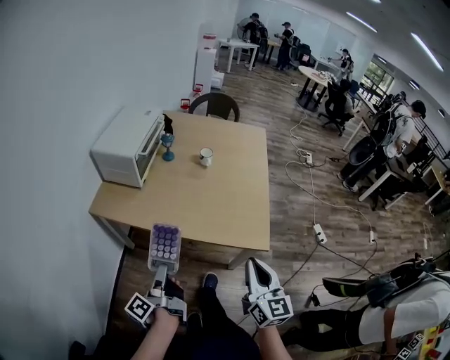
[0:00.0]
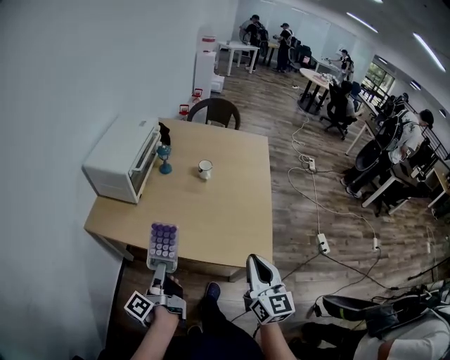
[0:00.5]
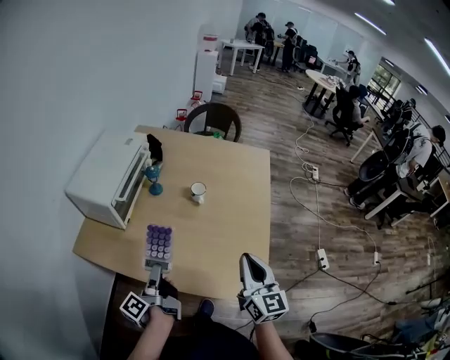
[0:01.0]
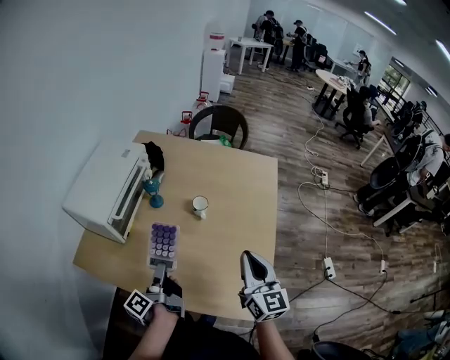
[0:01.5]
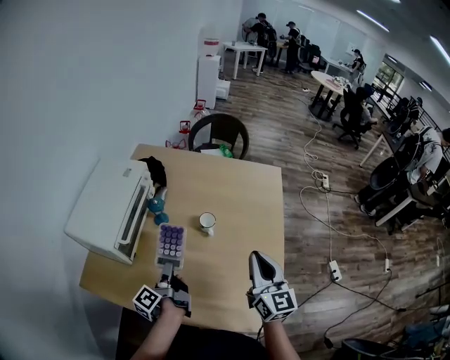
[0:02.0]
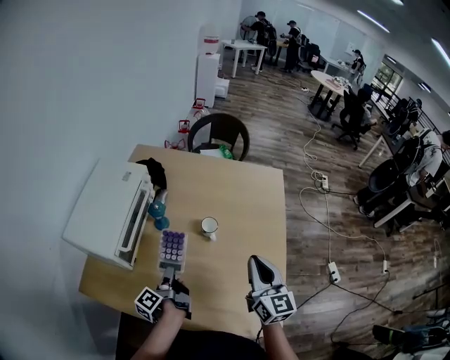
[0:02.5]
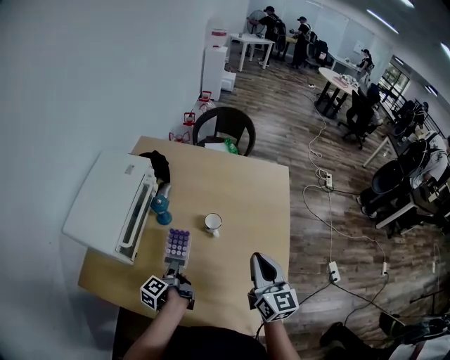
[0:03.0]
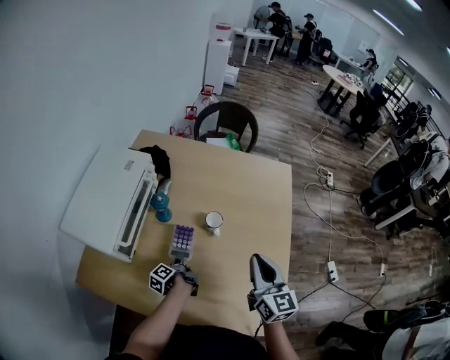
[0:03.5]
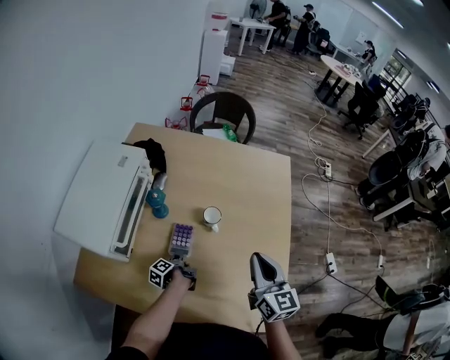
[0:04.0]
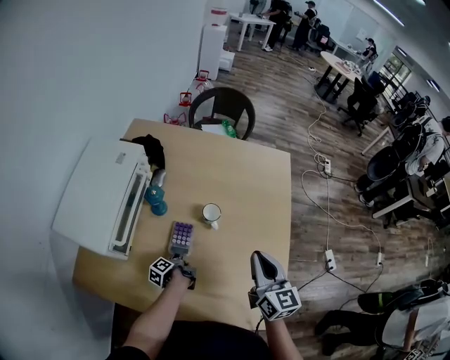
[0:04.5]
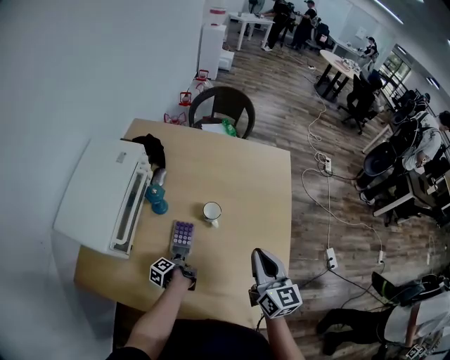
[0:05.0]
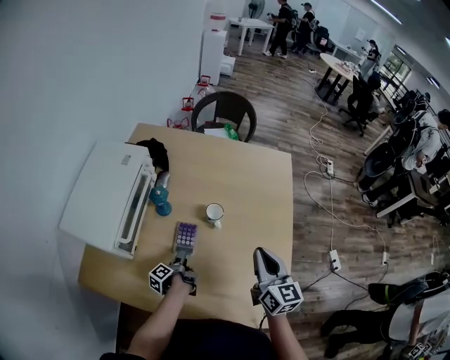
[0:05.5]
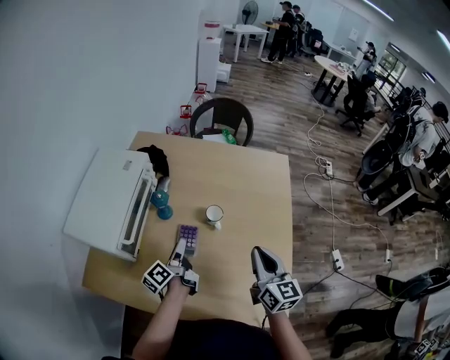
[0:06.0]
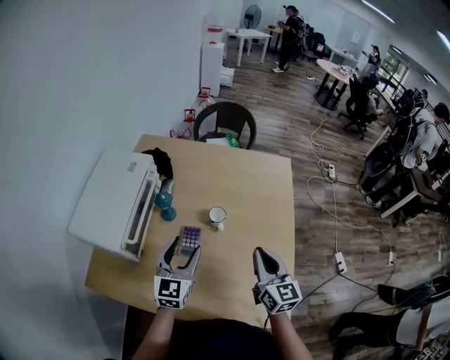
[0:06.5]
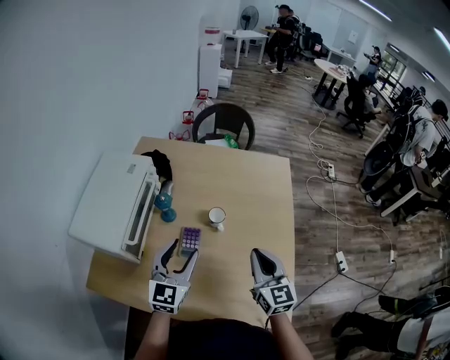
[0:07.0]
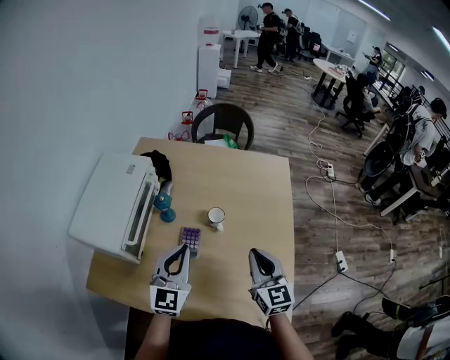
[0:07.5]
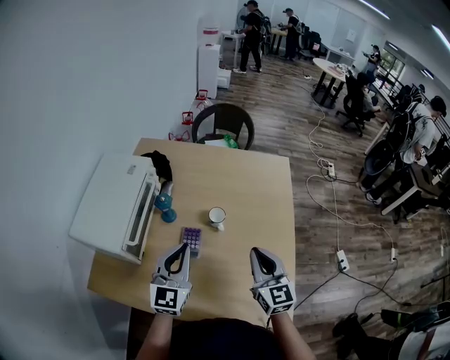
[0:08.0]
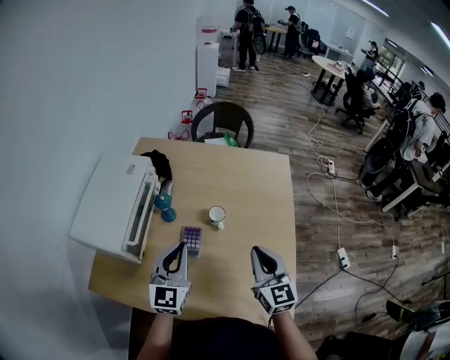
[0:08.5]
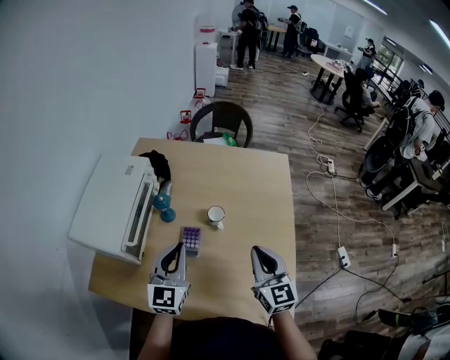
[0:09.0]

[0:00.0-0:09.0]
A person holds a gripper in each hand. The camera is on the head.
0:00.0 to 0:02.0: The right gripper changes place by some 50 cm.
0:02.0 to 0:04.5: The right gripper moves downward, approximately 5 cm.

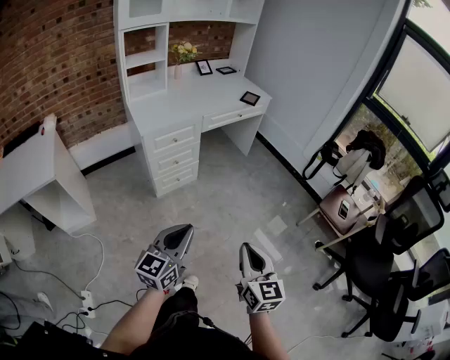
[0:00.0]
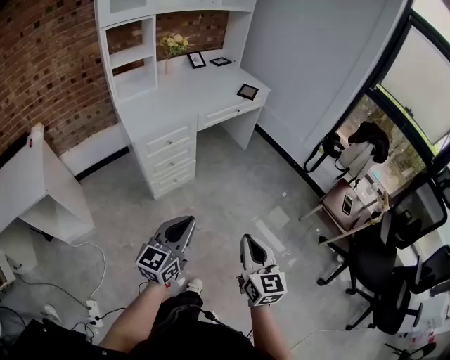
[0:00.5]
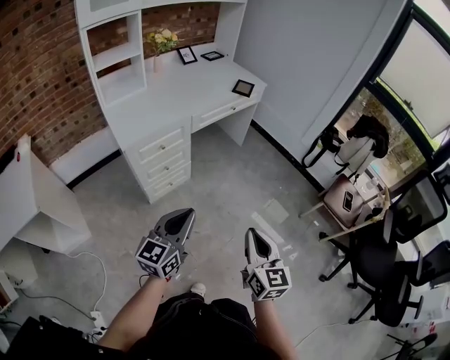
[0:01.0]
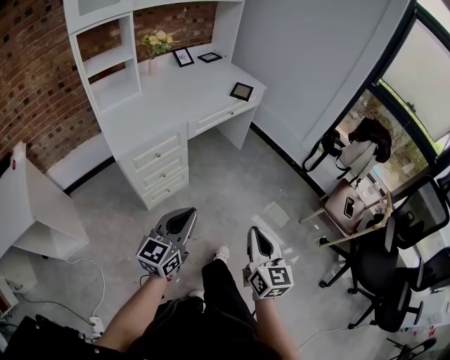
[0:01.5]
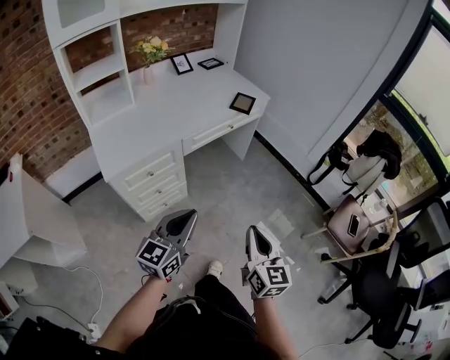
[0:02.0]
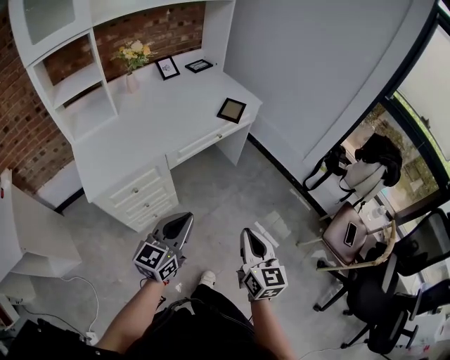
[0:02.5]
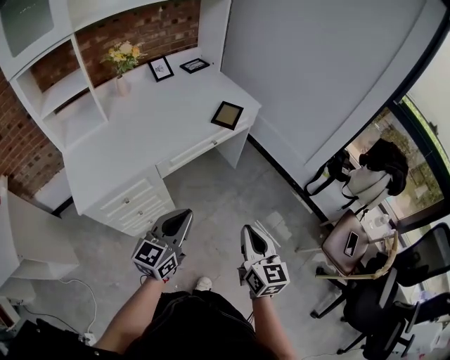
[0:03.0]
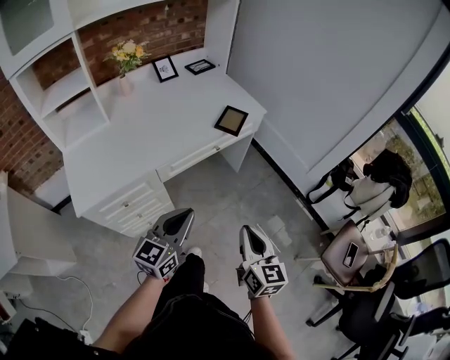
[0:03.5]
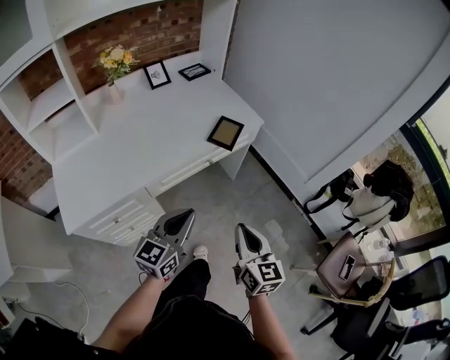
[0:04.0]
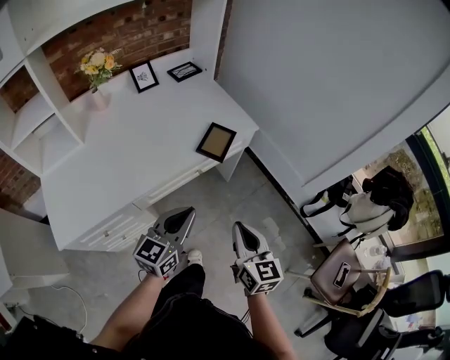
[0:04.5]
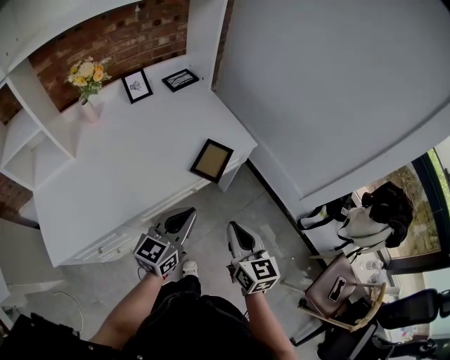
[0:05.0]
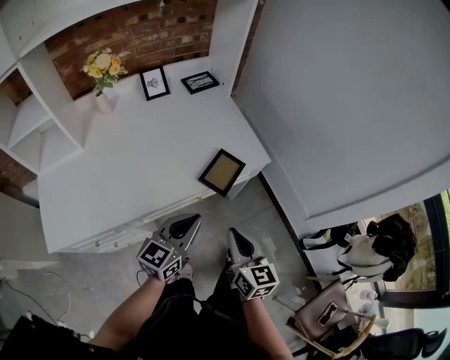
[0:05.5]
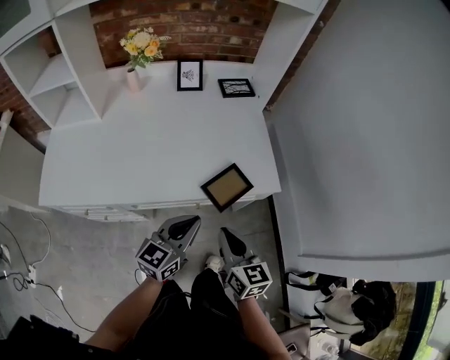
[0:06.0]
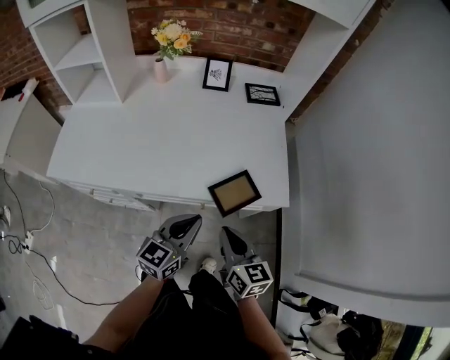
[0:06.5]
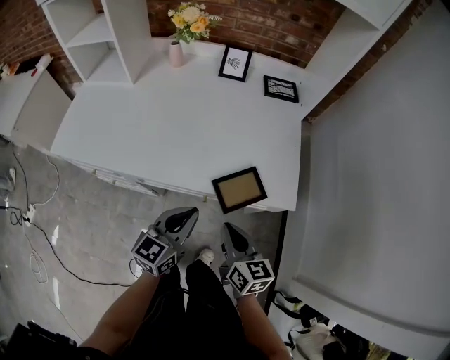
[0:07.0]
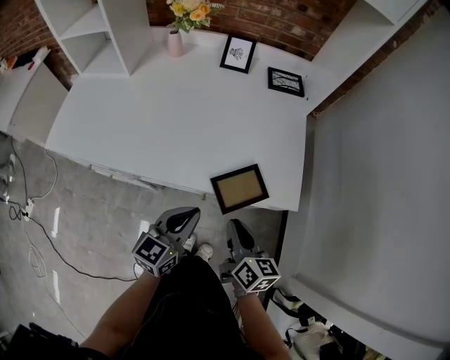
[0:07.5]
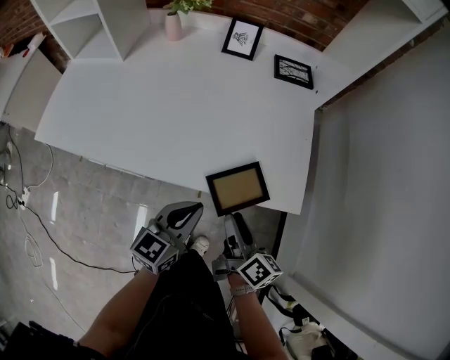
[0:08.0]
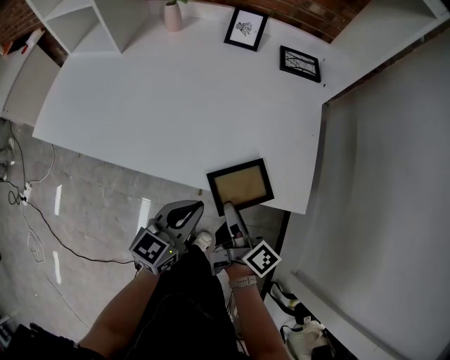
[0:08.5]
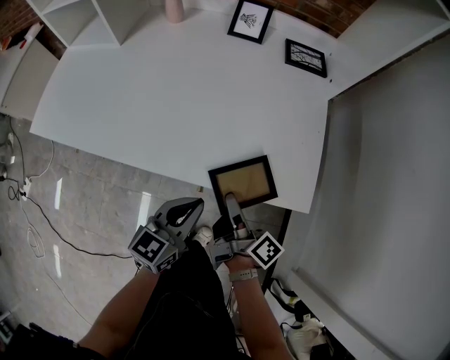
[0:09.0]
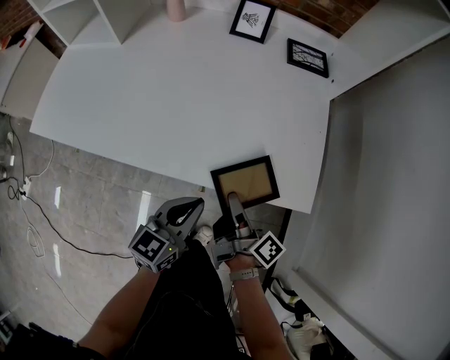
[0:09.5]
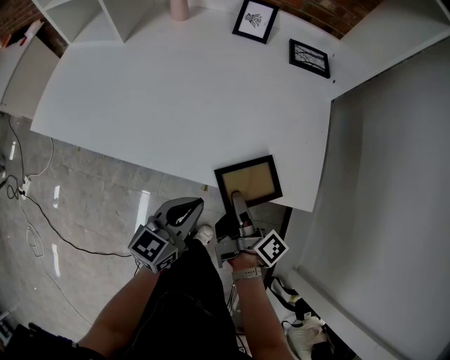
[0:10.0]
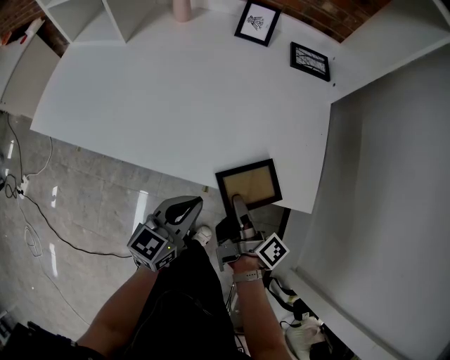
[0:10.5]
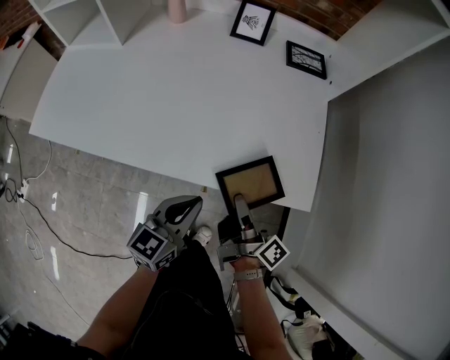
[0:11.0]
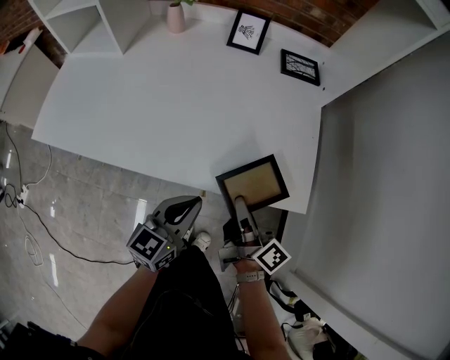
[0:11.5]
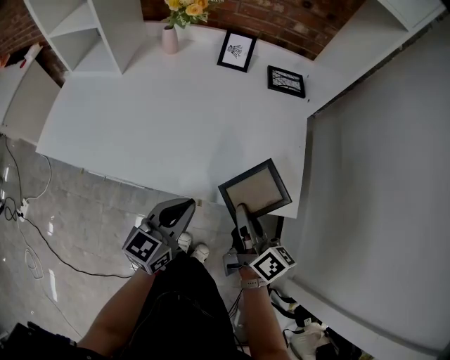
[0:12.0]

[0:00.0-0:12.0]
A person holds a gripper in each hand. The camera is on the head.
0:00.0 to 0:02.0: Both grippers travel together forward, some 35 cm.
0:02.0 to 0:04.0: The grippers both shift forward by roughly 30 cm.
0:04.0 to 0:06.0: The left gripper ends up approximately 25 cm from where it was, and swivels about 20 degrees. Meanwhile the right gripper changes place by about 25 cm, and rotates roughly 30 degrees.
0:06.0 to 0:08.0: The right gripper shifts approximately 10 cm downward and forward, rotates about 40 degrees, and opens; the left gripper heads downward, covering some 5 cm.
0:08.0 to 0:10.0: The right gripper changes place by about 5 cm, and swivels approximately 30 degrees.
0:10.0 to 0:12.0: The left gripper travels upward by roughly 5 cm. The right gripper shifts roughly 10 cm upward, and rotates some 40 degrees.

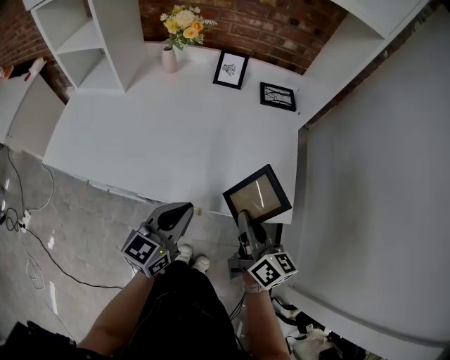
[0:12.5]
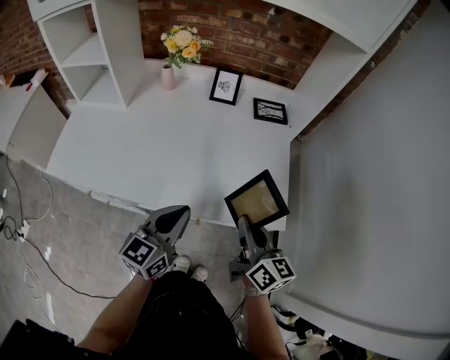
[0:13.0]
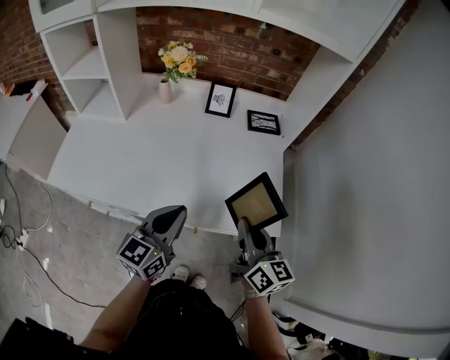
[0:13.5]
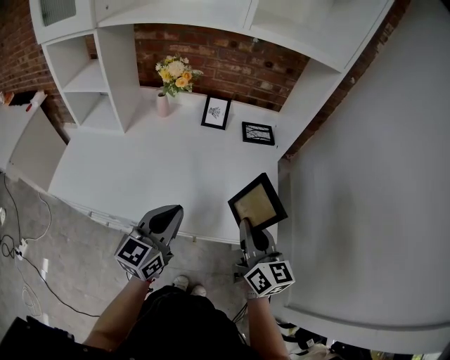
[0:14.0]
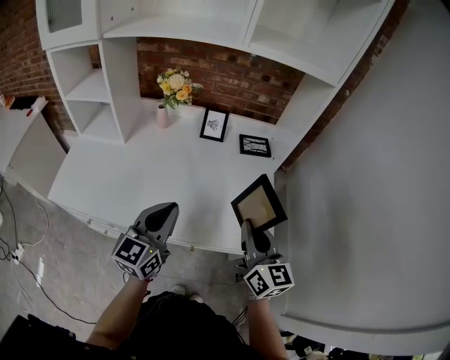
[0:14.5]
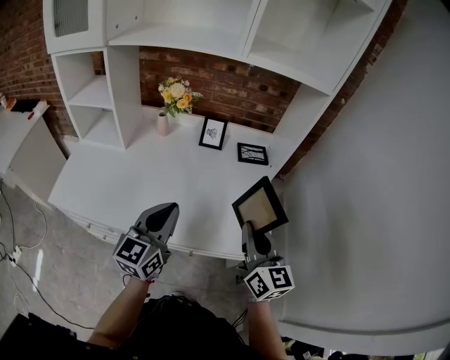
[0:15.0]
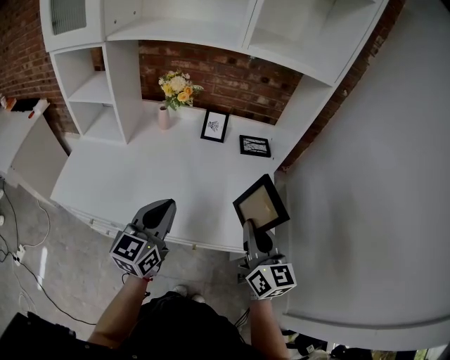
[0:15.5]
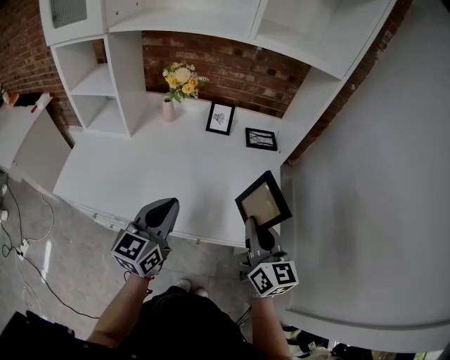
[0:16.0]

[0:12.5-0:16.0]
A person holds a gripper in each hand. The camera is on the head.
0:12.5 to 0:14.5: The right gripper shifts about 10 cm upward, and turns by about 30 degrees. The left gripper goes some 10 cm upward and forward.
0:14.5 to 0:16.0: The grippers move only a little.

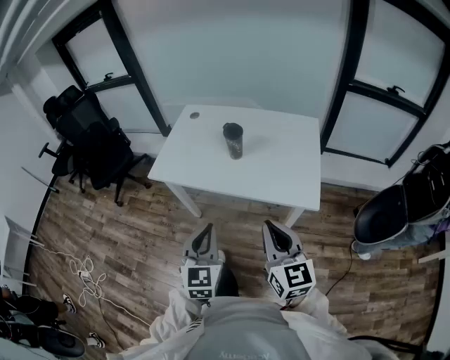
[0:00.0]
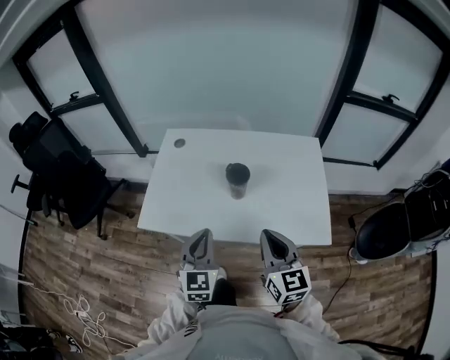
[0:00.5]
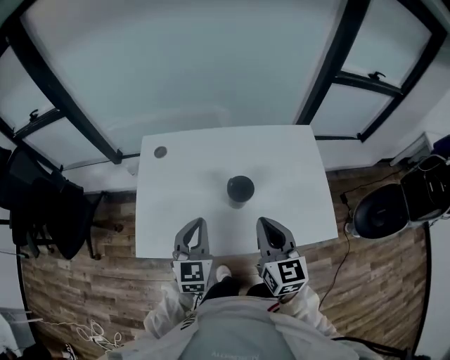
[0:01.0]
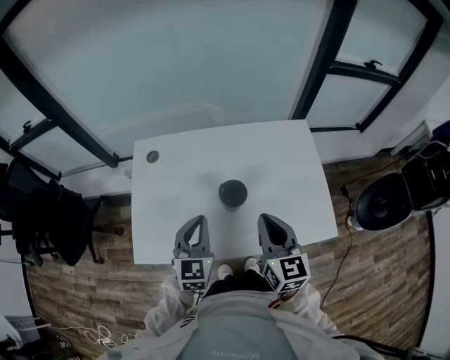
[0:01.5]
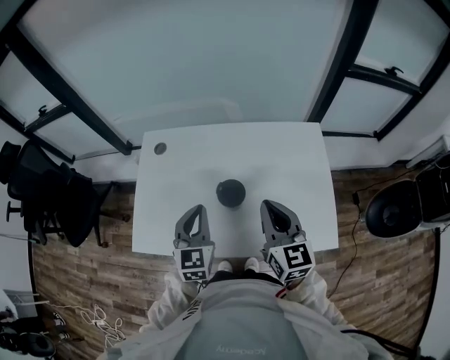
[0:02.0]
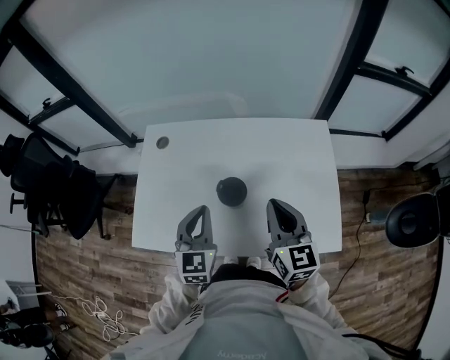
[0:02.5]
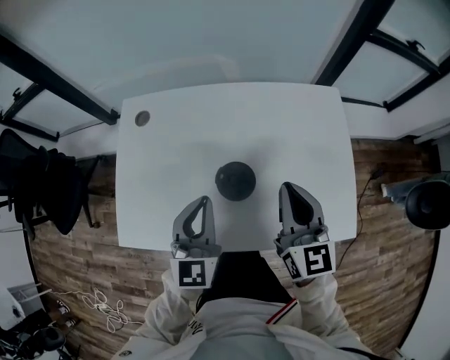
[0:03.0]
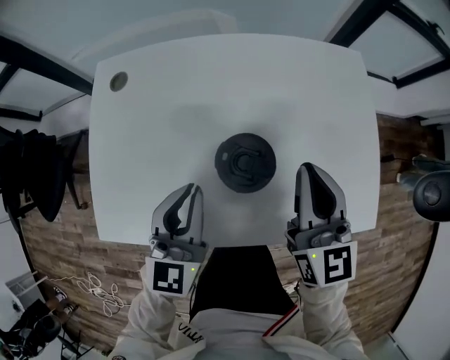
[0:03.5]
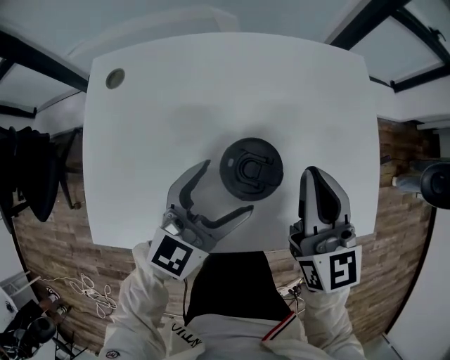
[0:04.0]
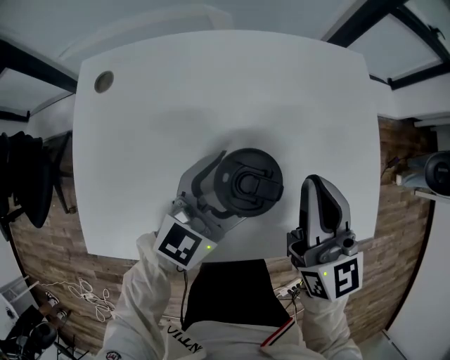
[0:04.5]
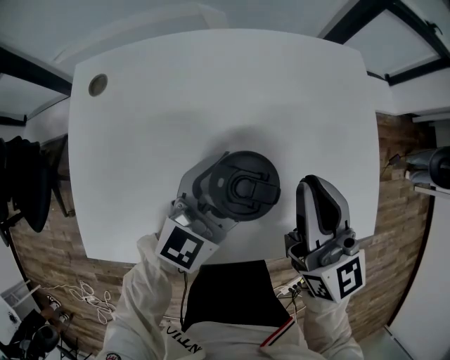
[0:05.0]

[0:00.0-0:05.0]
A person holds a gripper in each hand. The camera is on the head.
0:00.0 to 0:02.5: The pair of grippers is taken forward, approximately 40 cm.
0:02.5 to 0:05.0: Both grippers move downward, roughly 15 cm. The left gripper swivels roughly 40 degrees, and opens up.
